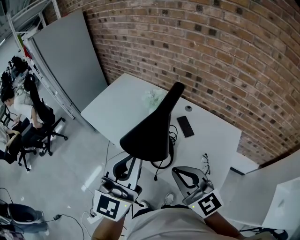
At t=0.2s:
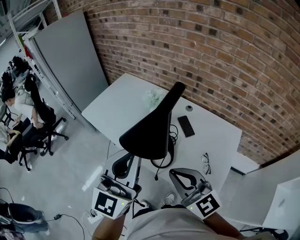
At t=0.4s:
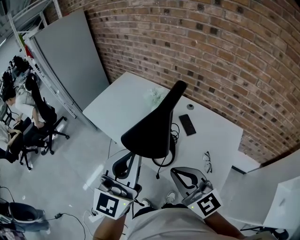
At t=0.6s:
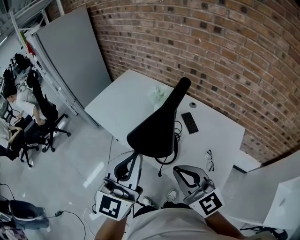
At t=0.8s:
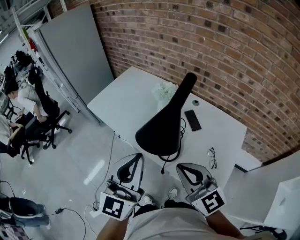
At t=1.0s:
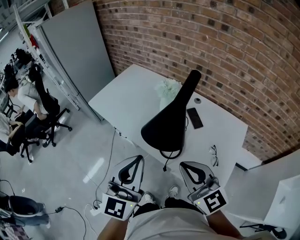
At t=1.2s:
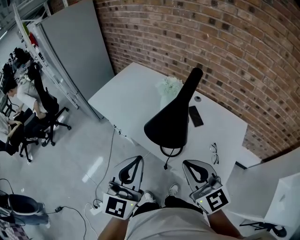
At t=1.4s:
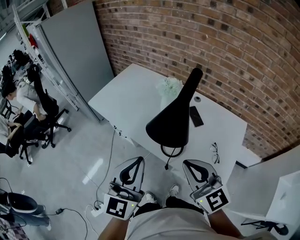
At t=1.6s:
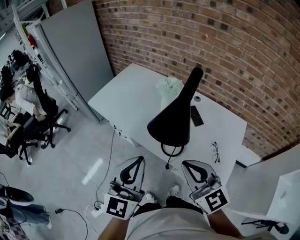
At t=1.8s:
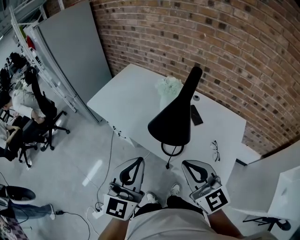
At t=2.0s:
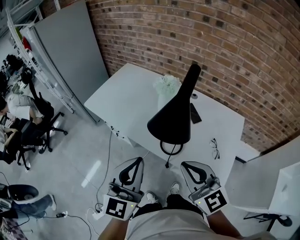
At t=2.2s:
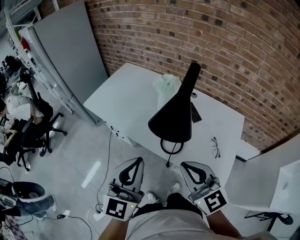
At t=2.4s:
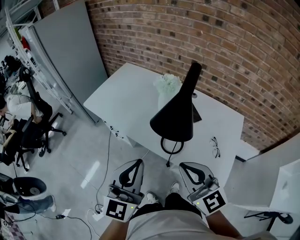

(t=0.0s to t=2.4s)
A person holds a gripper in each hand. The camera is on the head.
t=0.0s - t=1.2s: The left gripper shifts about 10 cm downward and to the left.
t=1.2s - t=2.4s: The grippers move only a little.

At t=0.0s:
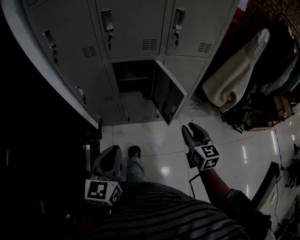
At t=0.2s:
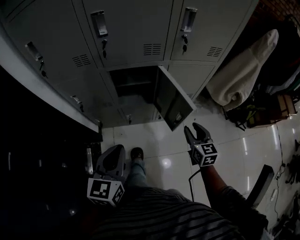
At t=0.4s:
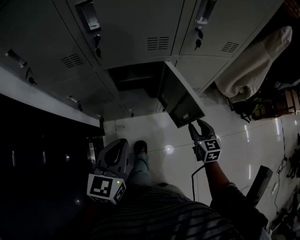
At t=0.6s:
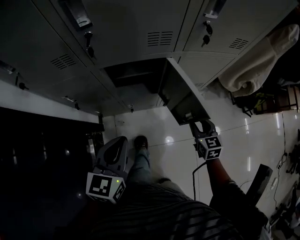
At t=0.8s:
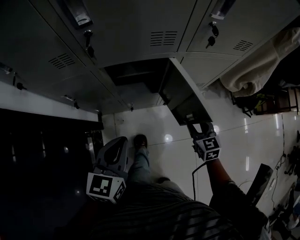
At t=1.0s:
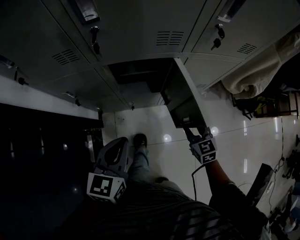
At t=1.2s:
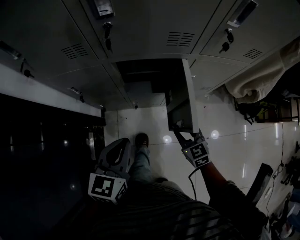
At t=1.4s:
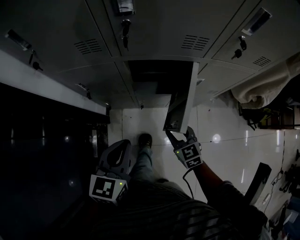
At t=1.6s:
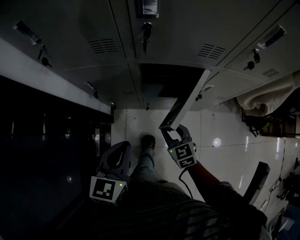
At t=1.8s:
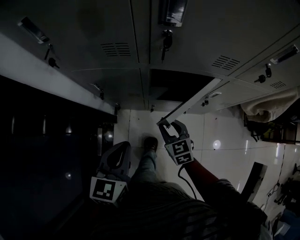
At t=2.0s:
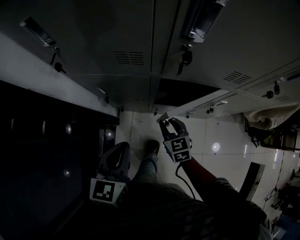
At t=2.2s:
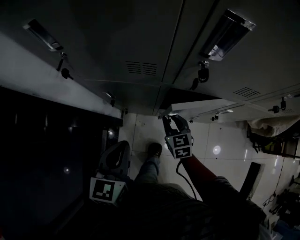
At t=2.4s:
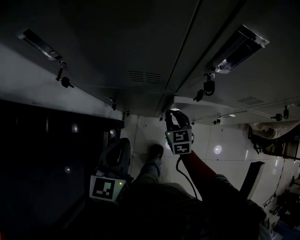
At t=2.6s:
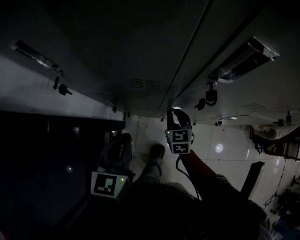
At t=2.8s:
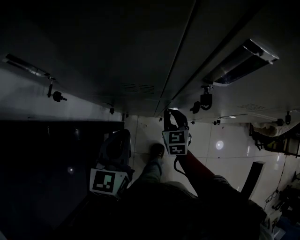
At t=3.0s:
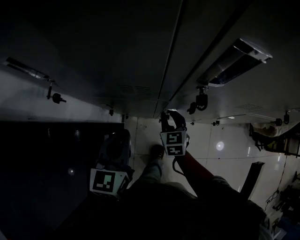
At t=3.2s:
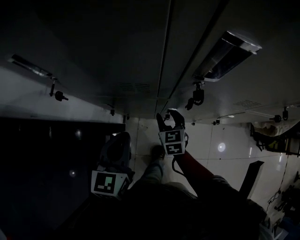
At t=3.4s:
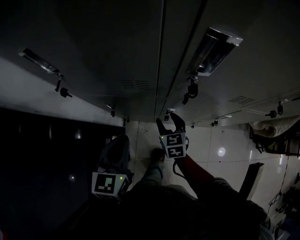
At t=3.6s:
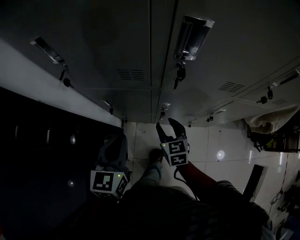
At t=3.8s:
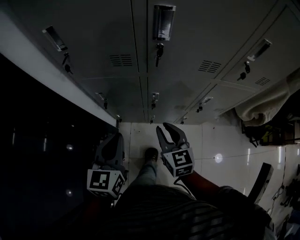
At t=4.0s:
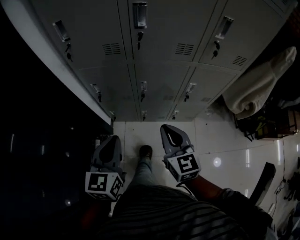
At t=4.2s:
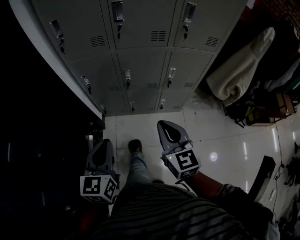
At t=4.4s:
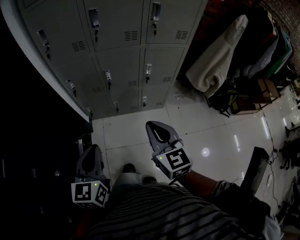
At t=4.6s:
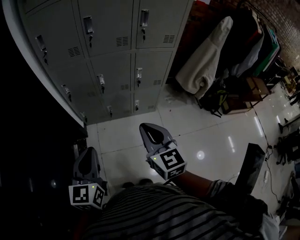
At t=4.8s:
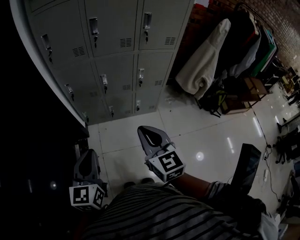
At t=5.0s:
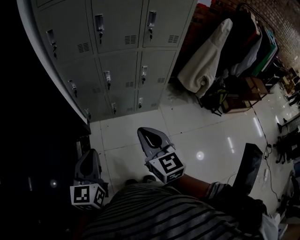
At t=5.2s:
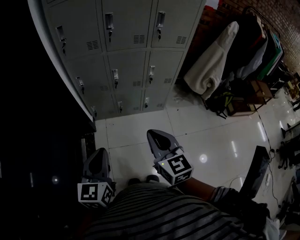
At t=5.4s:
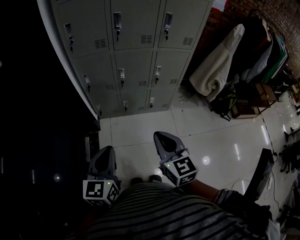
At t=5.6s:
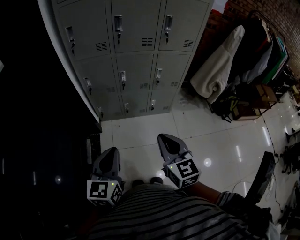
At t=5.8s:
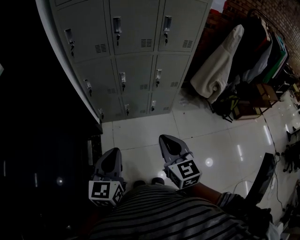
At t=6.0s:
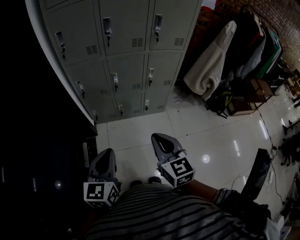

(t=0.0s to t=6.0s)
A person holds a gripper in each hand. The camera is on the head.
t=0.0s - t=1.6s: The right gripper shifts roughly 30 cm to the left, downward and forward, and rotates approximately 30 degrees; the left gripper moves forward, downward and to the left, approximately 20 cm.
t=1.6s - t=3.0s: The left gripper heads forward and to the left, covering approximately 20 cm, while the right gripper is displaced forward by about 20 cm.
t=3.0s - t=4.4s: The two grippers travel together, backward, some 50 cm. The right gripper travels upward by about 30 cm, swivels roughly 20 degrees, and opens, then closes again.
t=4.4s - t=6.0s: The left gripper travels backward by some 10 cm, while the right gripper heads backward and to the left, covering some 10 cm.

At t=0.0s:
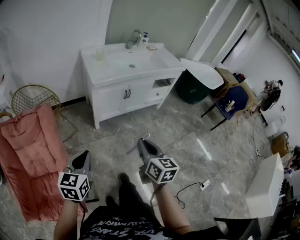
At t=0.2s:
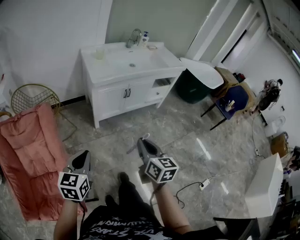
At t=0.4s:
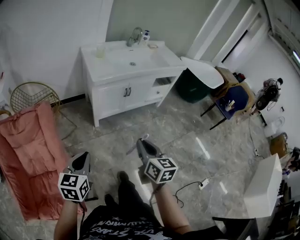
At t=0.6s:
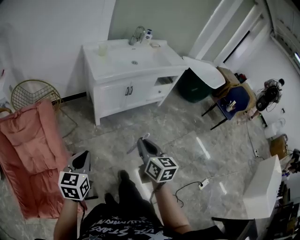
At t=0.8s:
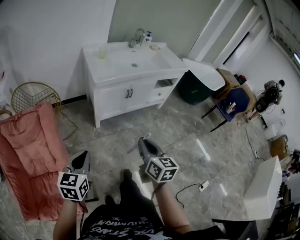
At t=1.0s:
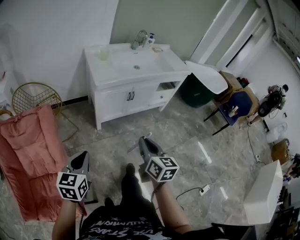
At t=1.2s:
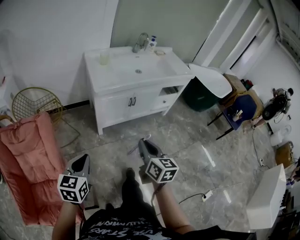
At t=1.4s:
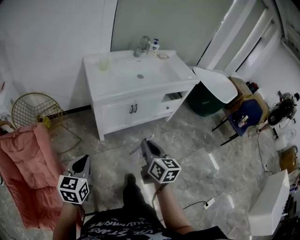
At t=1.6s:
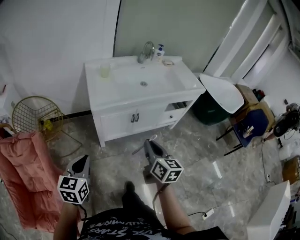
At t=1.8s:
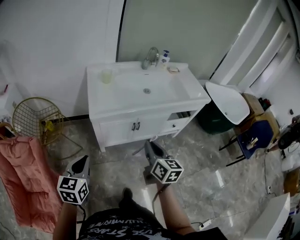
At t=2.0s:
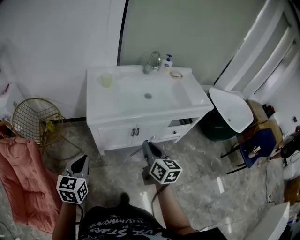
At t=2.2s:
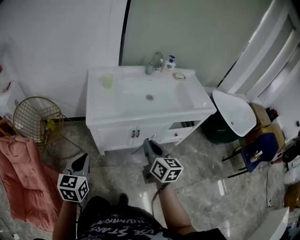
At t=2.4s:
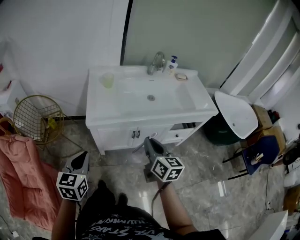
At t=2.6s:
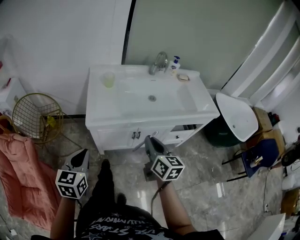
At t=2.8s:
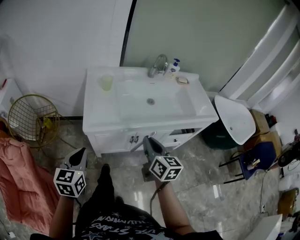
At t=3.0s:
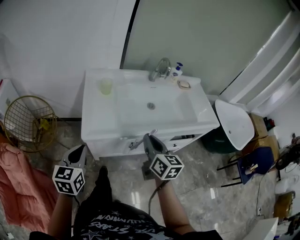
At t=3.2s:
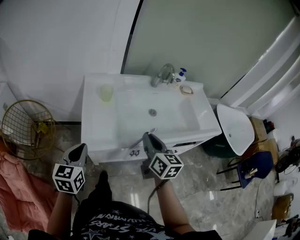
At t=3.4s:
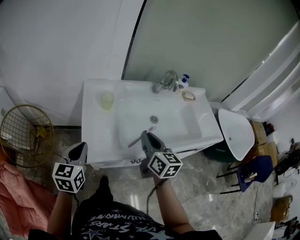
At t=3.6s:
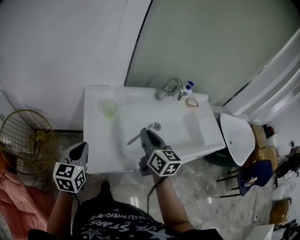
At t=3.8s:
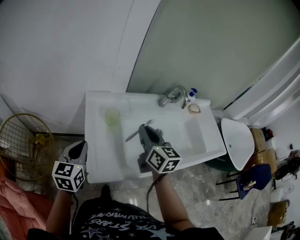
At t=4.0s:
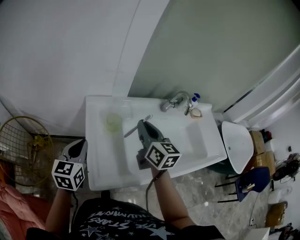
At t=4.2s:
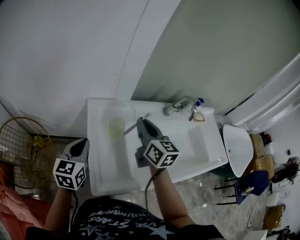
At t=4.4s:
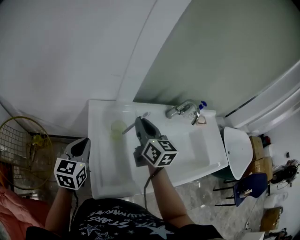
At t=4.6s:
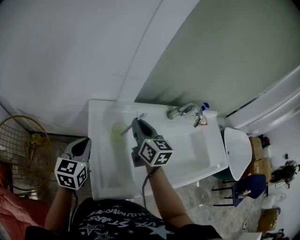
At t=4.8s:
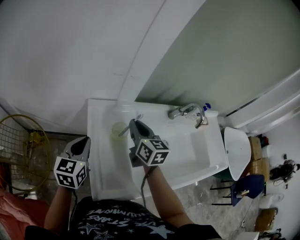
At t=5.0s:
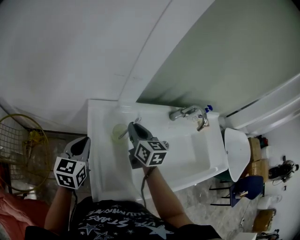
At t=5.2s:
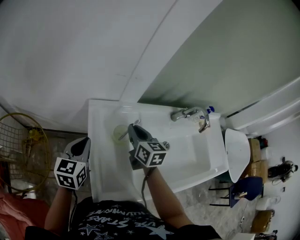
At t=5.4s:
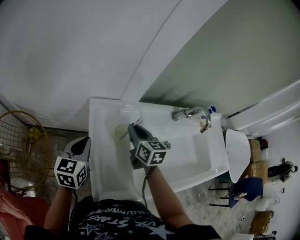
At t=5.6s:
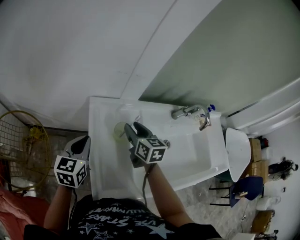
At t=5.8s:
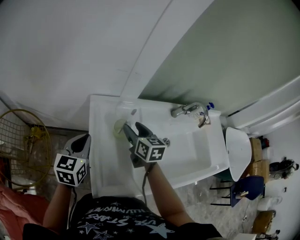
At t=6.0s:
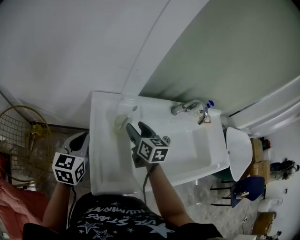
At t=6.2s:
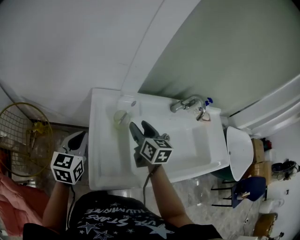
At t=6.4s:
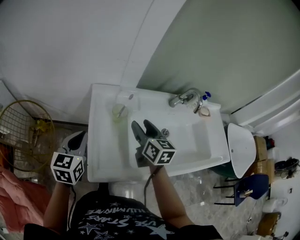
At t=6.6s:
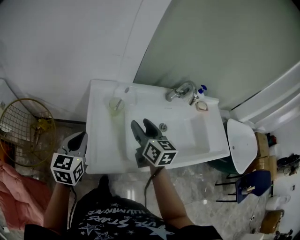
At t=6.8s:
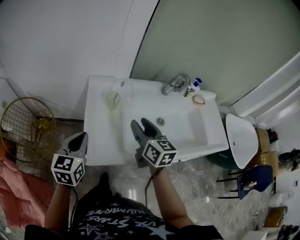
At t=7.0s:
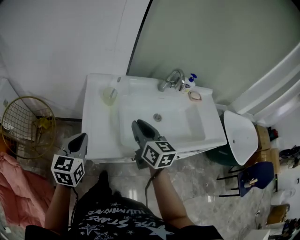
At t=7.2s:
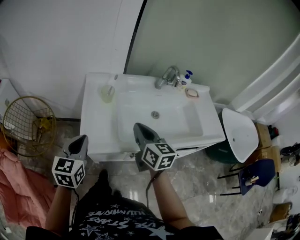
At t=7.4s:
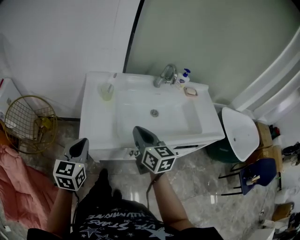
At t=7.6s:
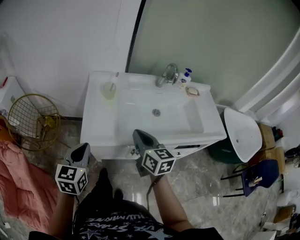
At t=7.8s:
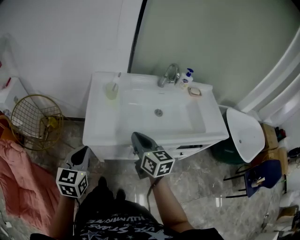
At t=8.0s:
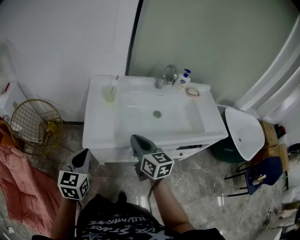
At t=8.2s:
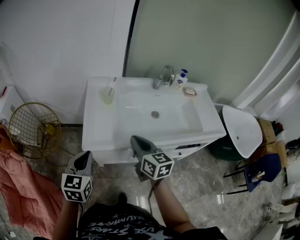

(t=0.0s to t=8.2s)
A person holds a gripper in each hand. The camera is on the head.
t=0.0s - t=1.6s: Both grippers move forward, approximately 25 cm.
t=1.6s - t=3.2s: Both grippers travel together forward, about 30 cm.
t=3.2s - t=5.0s: The right gripper moves forward and to the left, approximately 35 cm. Meanwhile the left gripper goes some 30 cm forward.
t=5.0s - t=6.6s: The two grippers go approximately 15 cm backward. The right gripper opens.
t=6.6s - t=8.2s: Both grippers move backward, some 20 cm. The right gripper closes up.

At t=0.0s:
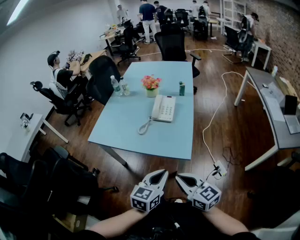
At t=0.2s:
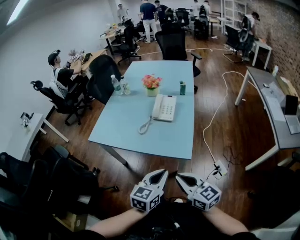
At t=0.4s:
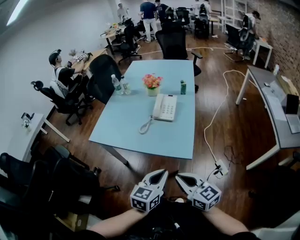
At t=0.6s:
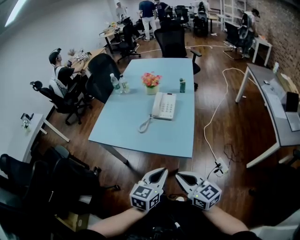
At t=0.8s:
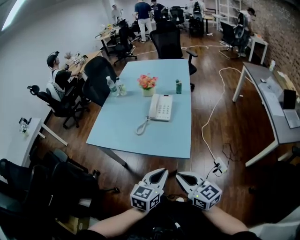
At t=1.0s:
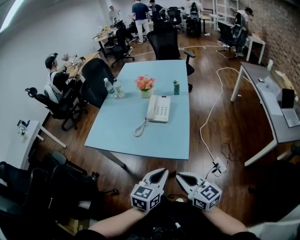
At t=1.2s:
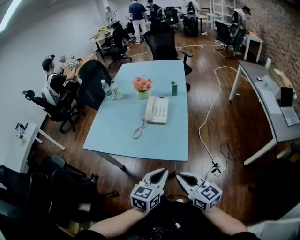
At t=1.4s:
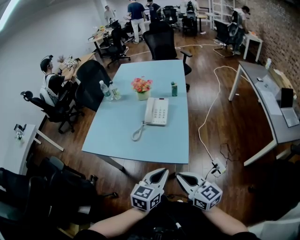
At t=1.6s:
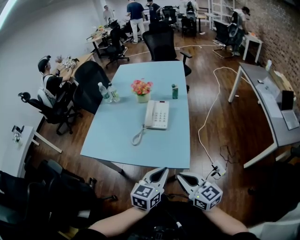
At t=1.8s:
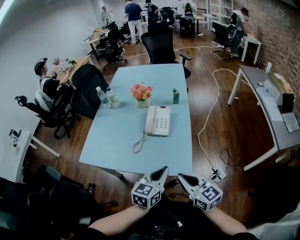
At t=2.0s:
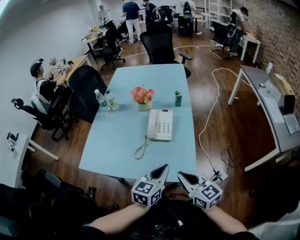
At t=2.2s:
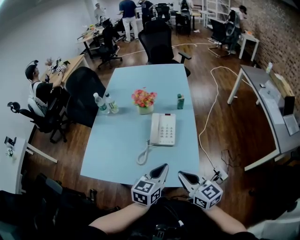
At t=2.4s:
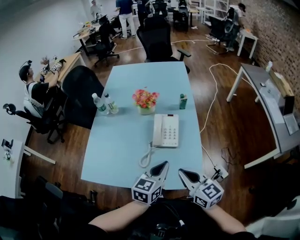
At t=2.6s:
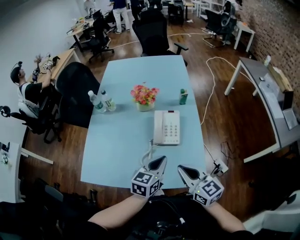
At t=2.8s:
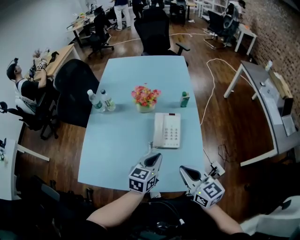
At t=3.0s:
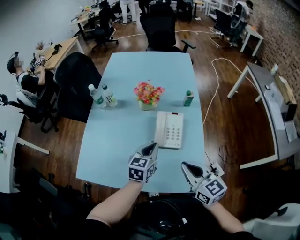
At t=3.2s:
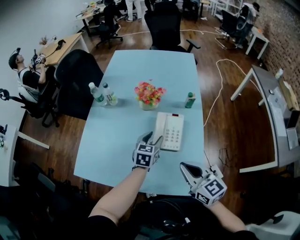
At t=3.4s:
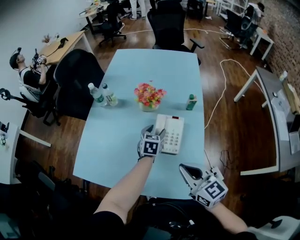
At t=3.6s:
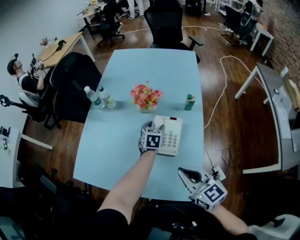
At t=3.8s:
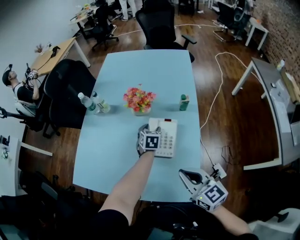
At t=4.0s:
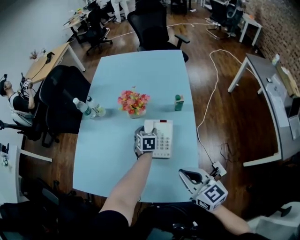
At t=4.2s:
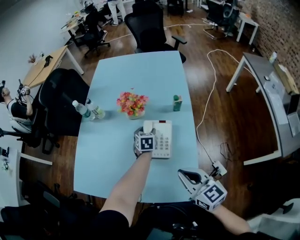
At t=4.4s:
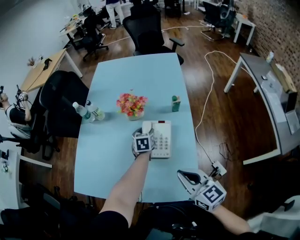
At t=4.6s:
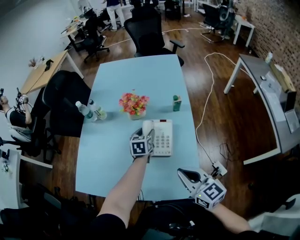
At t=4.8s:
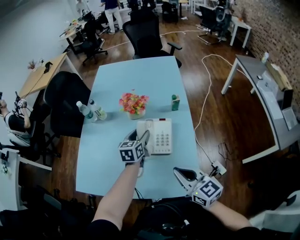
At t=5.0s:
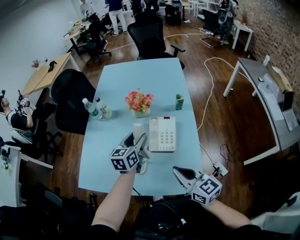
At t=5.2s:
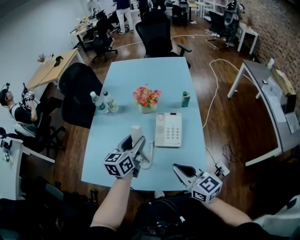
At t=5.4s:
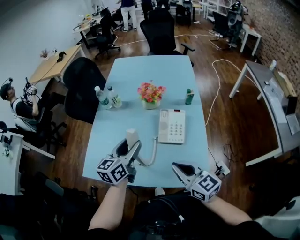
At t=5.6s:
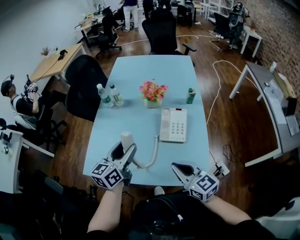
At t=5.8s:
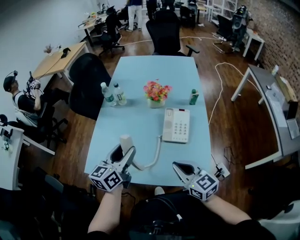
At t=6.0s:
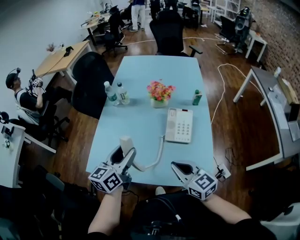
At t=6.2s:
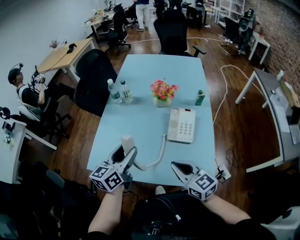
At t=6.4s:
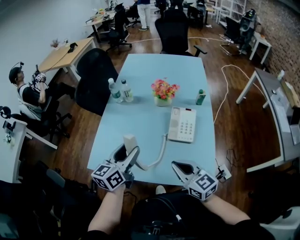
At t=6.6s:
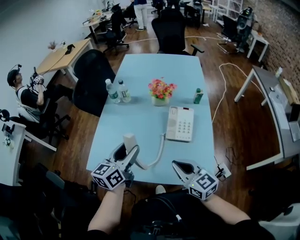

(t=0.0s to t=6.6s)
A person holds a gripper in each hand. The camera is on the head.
t=0.0s - t=1.6s: The grippers both shift forward by approximately 10 cm.
t=1.6s - t=3.2s: The grippers both shift forward by some 30 cm. The left gripper opens.
t=3.2s - t=5.0s: The left gripper is displaced upward by some 10 cm.
t=5.0s - t=6.6s: The right gripper shifts roughly 10 cm to the left. The left gripper is displaced to the left and backward by some 20 cm.
